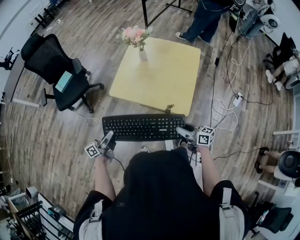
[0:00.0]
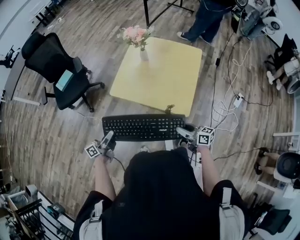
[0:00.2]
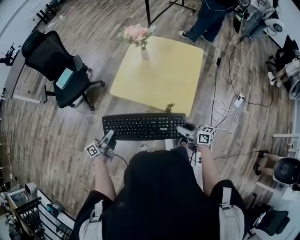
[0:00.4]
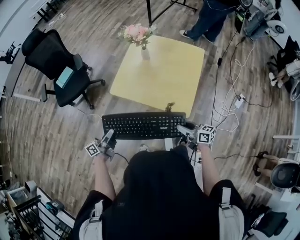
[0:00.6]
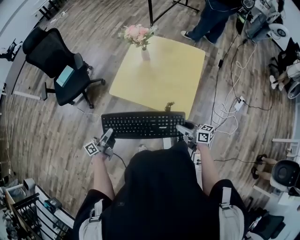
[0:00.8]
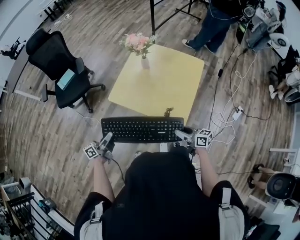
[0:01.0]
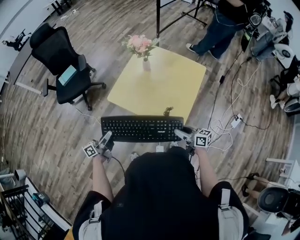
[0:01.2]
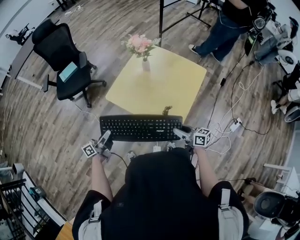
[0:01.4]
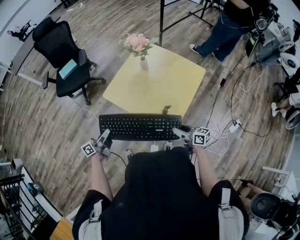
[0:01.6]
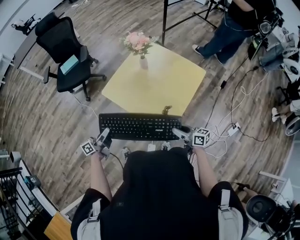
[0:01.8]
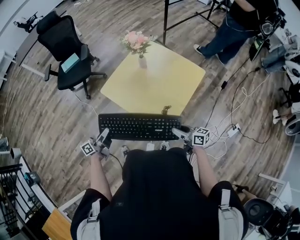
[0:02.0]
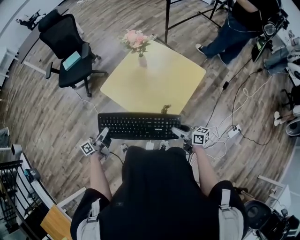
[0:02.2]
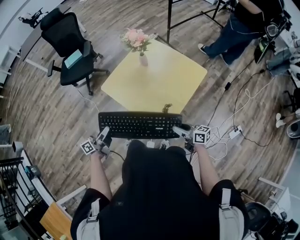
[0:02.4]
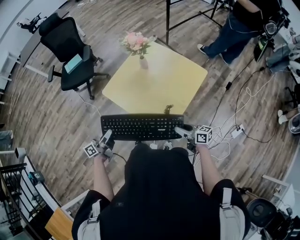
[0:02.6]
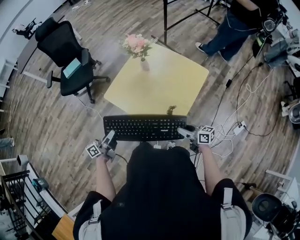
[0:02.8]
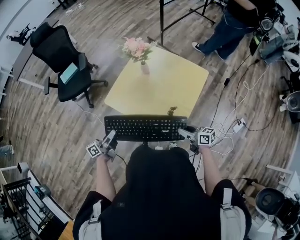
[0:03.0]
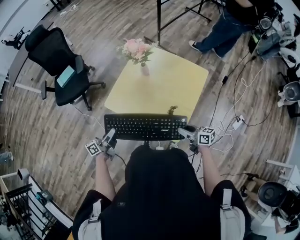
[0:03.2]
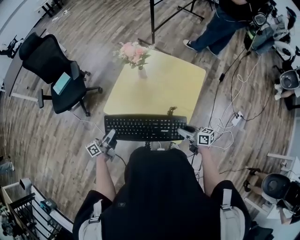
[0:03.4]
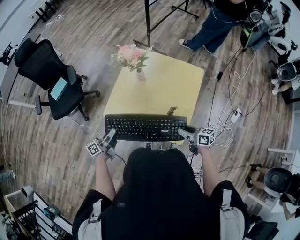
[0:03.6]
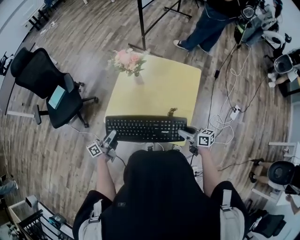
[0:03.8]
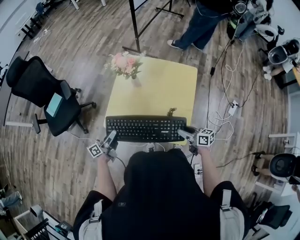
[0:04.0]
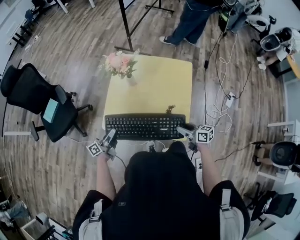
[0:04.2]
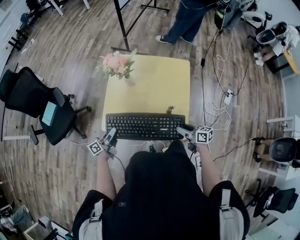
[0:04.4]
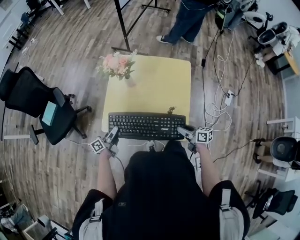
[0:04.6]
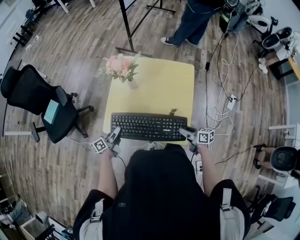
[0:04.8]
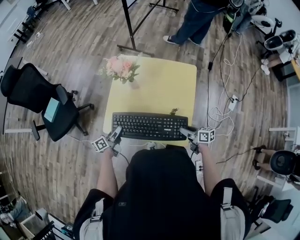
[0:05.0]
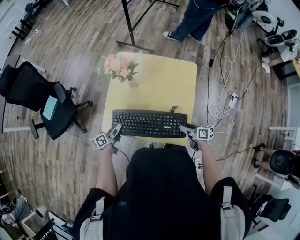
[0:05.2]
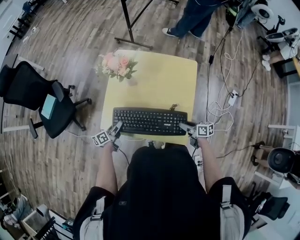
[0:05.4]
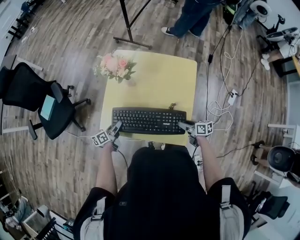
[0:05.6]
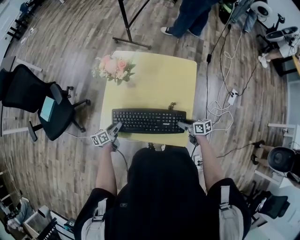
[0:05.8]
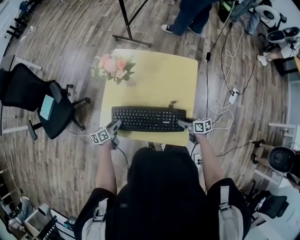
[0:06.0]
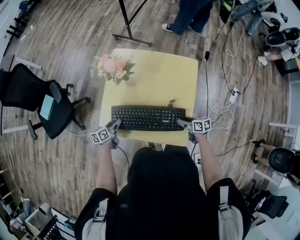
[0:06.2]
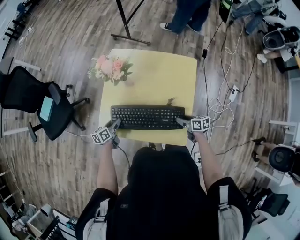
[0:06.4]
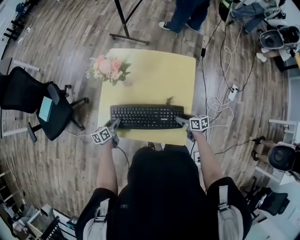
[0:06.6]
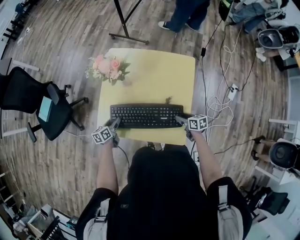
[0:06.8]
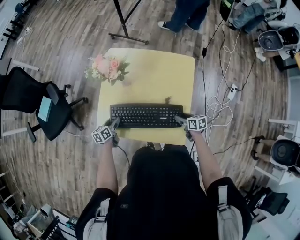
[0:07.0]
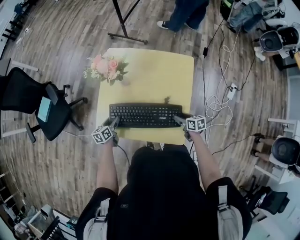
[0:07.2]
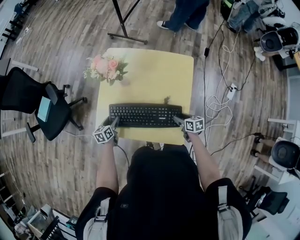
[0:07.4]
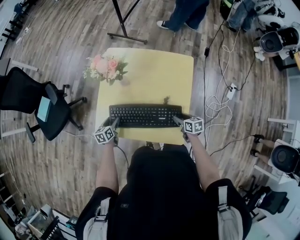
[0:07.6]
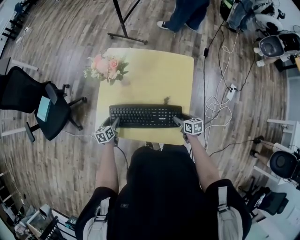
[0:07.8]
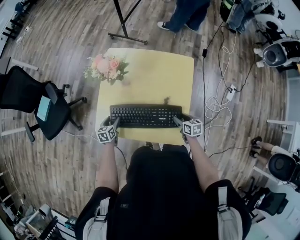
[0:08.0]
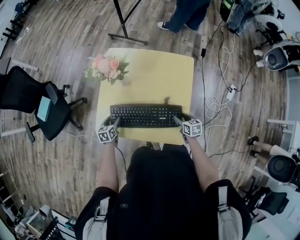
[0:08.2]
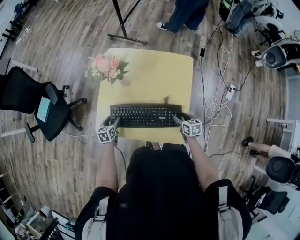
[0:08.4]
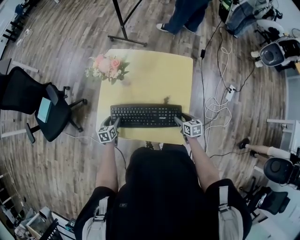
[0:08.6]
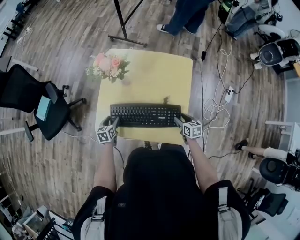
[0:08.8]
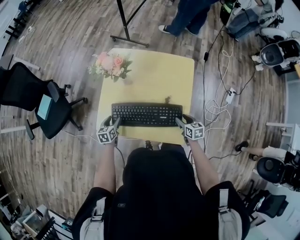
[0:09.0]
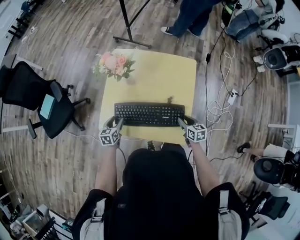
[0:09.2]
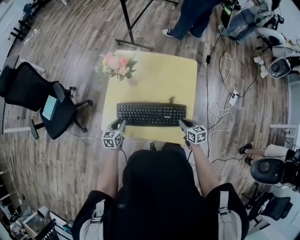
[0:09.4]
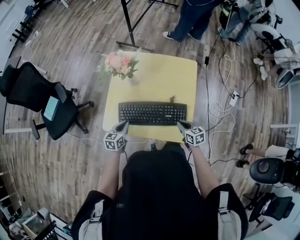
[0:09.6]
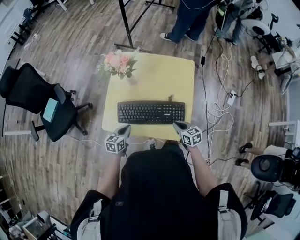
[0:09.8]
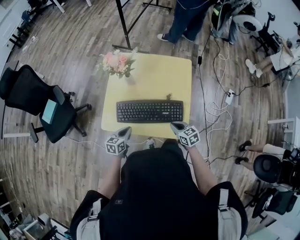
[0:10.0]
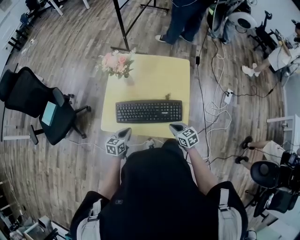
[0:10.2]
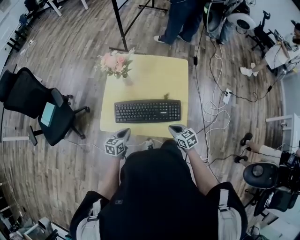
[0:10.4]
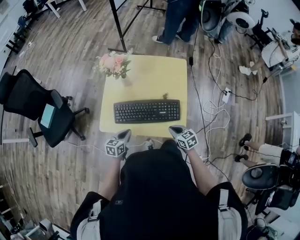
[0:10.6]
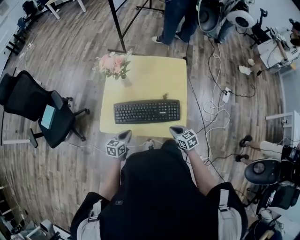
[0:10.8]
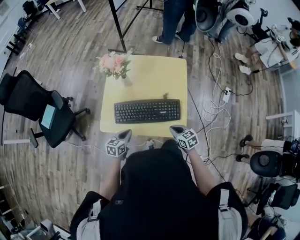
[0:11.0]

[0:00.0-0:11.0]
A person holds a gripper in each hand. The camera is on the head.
0:00.0 to 0:01.6: The left gripper heads to the right, covering approximately 10 cm; the right gripper shifts about 15 cm to the right and forward.
0:01.6 to 0:03.2: The grippers both shift forward by some 10 cm.
0:03.2 to 0:04.8: The left gripper moves forward and downward, approximately 15 cm. Meanwhile the right gripper ends up approximately 5 cm from where it was, and changes its angle by roughly 20 degrees.
0:04.8 to 0:06.2: Both grippers travel together downward and forward, some 10 cm. The left gripper rotates roughly 20 degrees, and opens.
0:06.2 to 0:07.8: The left gripper swivels roughly 20 degrees.
0:07.8 to 0:09.4: Both grippers move upward, approximately 5 cm. The left gripper closes; the right gripper closes up.
0:09.4 to 0:11.0: The left gripper heads backward and to the right, covering approximately 10 cm, and closes up; the right gripper moves backward and to the left, approximately 10 cm.

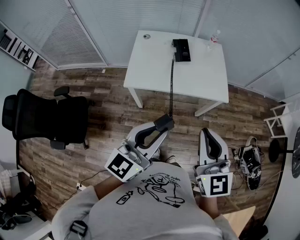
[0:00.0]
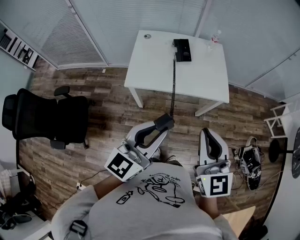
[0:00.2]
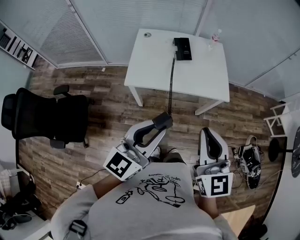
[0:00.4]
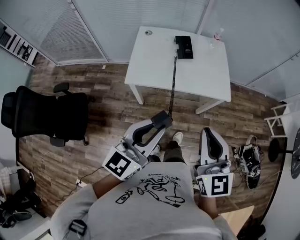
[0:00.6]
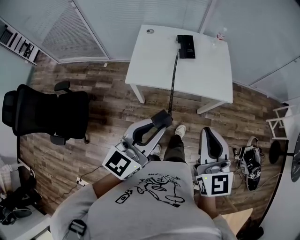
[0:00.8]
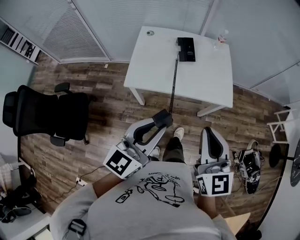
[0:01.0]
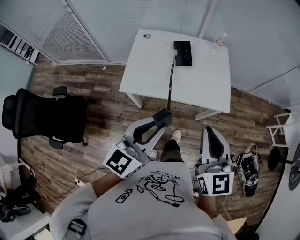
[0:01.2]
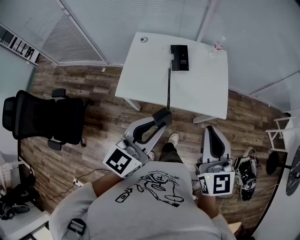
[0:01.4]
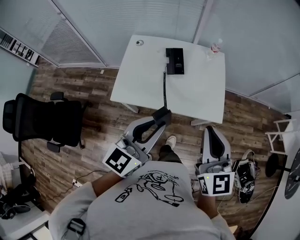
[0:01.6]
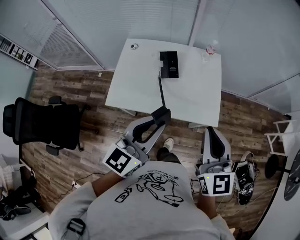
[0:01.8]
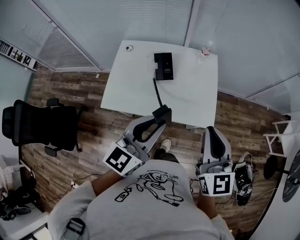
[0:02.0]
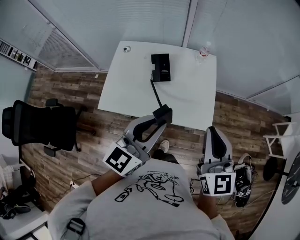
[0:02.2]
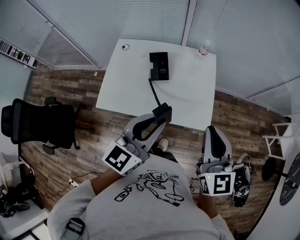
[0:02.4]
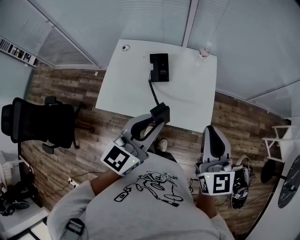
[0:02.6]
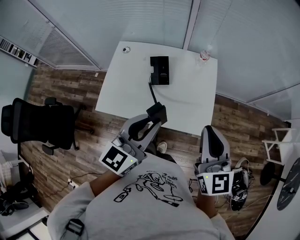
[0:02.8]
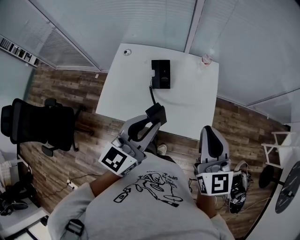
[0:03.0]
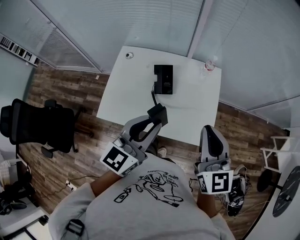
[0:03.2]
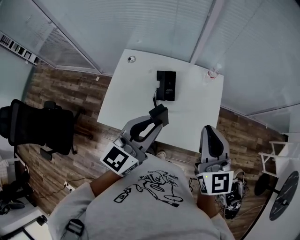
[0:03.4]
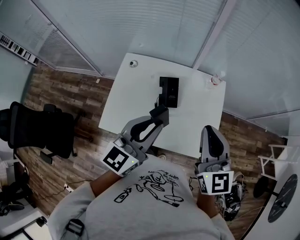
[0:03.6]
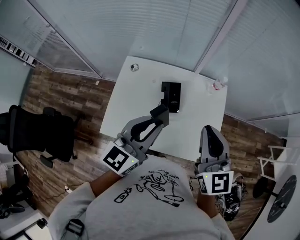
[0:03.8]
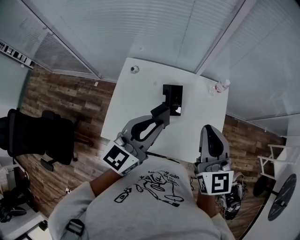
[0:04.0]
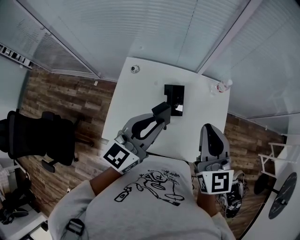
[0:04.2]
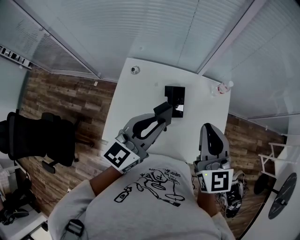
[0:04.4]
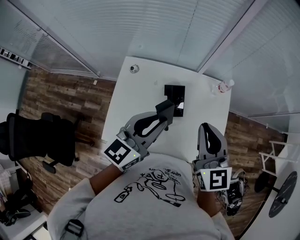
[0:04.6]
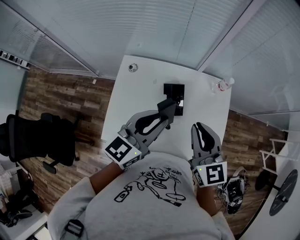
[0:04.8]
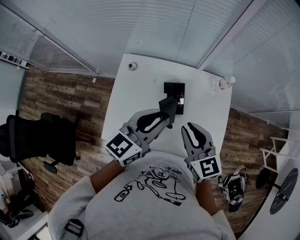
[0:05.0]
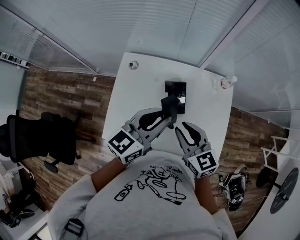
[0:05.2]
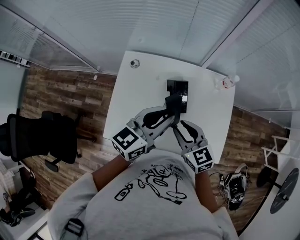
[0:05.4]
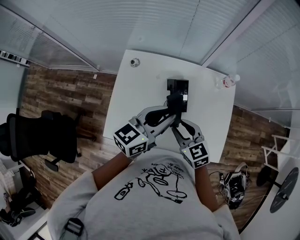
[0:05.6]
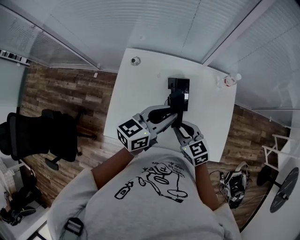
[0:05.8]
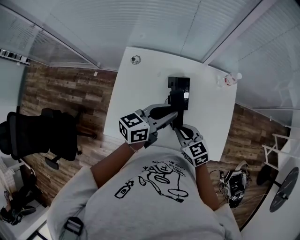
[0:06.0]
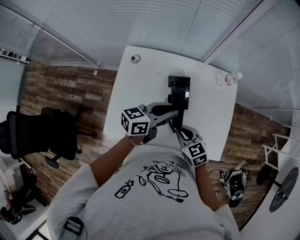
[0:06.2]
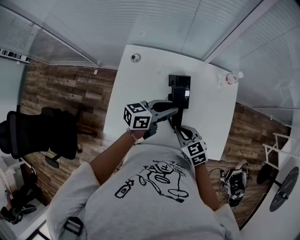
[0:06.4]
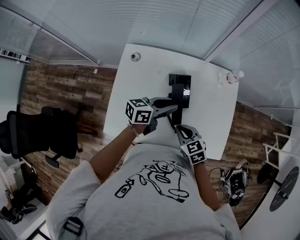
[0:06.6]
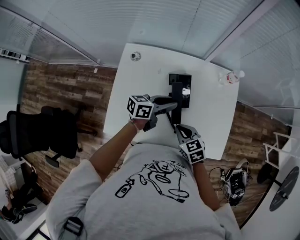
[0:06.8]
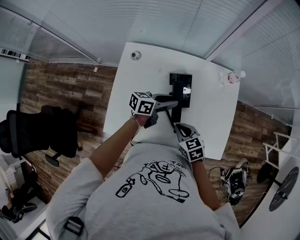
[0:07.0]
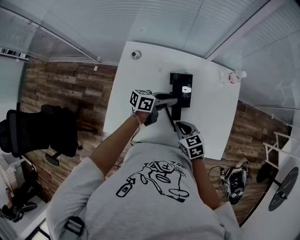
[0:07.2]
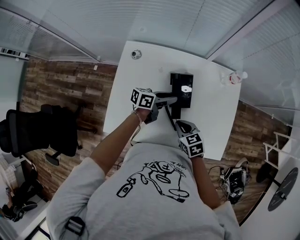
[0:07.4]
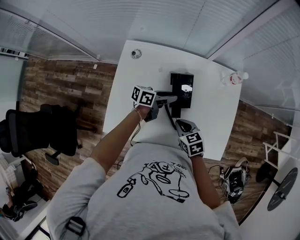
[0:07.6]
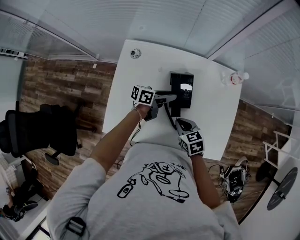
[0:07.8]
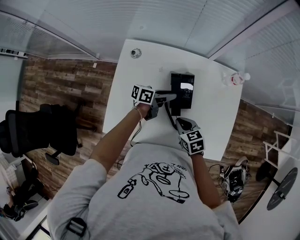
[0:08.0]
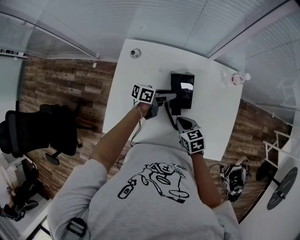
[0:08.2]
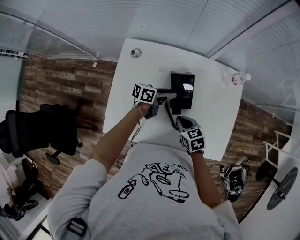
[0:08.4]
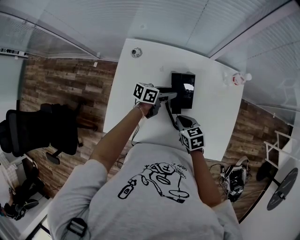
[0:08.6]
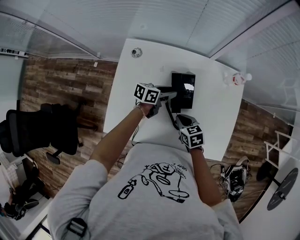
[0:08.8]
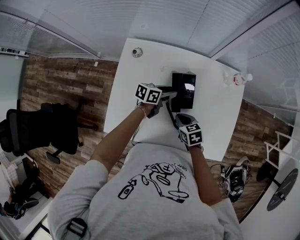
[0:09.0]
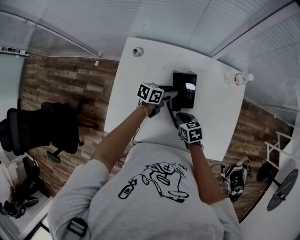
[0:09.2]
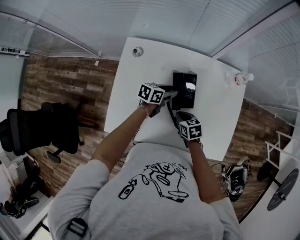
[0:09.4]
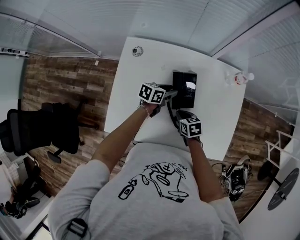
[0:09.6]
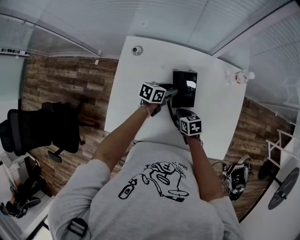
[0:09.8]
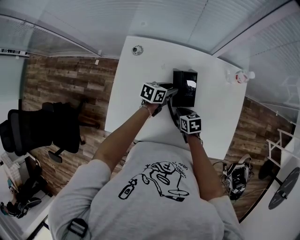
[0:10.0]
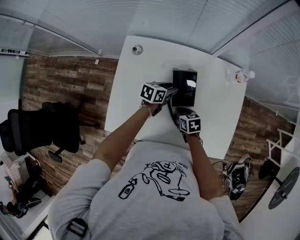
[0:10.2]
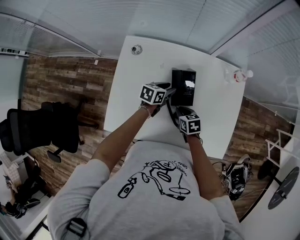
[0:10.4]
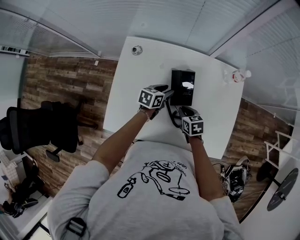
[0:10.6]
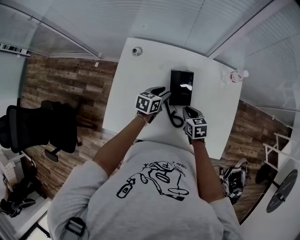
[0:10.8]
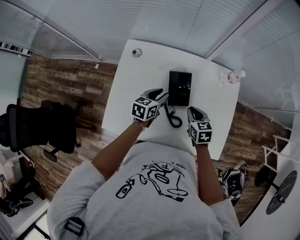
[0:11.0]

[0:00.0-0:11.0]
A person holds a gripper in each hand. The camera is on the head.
0:00.0 to 0:01.6: The left gripper is displaced forward by roughly 20 cm; the right gripper travels forward and to the right by about 20 cm.
0:01.6 to 0:03.2: Both grippers travel together forward, roughly 15 cm.
0:03.2 to 0:04.8: The right gripper is displaced to the left, forward and downward by about 20 cm. The left gripper shifts approximately 20 cm forward and to the left.
0:04.8 to 0:06.2: The right gripper travels downward by some 20 cm, rotates some 30 degrees, and opens, then closes once more, while the left gripper travels downward by approximately 15 cm, and swivels approximately 30 degrees.
0:06.2 to 0:07.8: The right gripper is displaced downward by roughly 5 cm; the left gripper heads downward, covering approximately 15 cm, and rotates some 20 degrees.
0:07.8 to 0:09.4: The left gripper rotates approximately 20 degrees. The right gripper is displaced downward by roughly 5 cm.
0:09.4 to 0:11.0: The left gripper goes approximately 5 cm upward, and swivels some 20 degrees; the right gripper travels upward and to the right by approximately 10 cm.

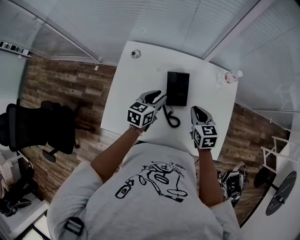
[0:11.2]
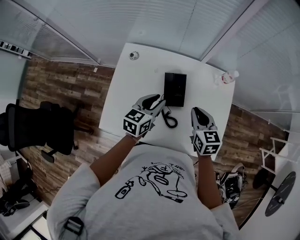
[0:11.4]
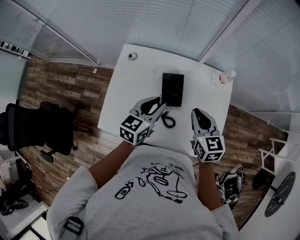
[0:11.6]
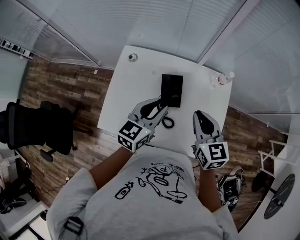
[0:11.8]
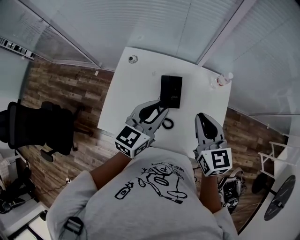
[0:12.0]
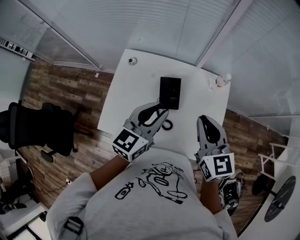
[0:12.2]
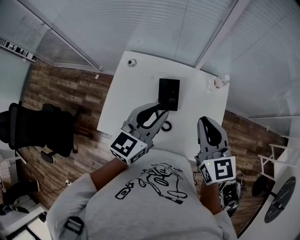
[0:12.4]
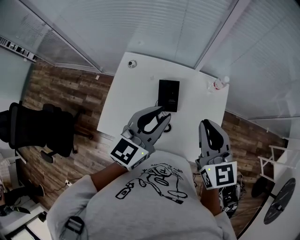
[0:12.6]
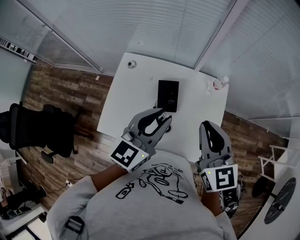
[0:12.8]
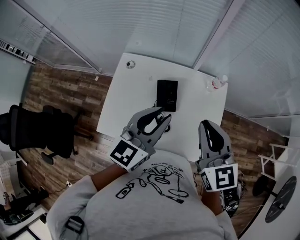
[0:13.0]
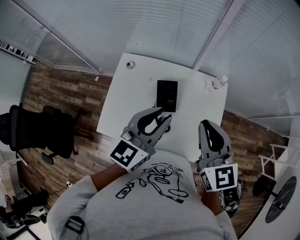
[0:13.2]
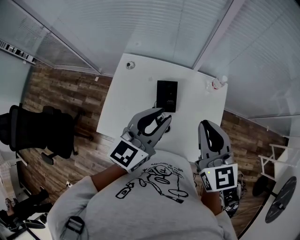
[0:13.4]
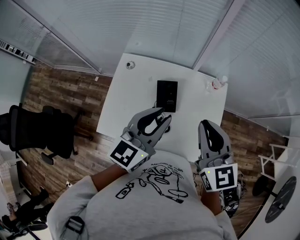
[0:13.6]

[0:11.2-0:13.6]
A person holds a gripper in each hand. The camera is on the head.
0:11.2 to 0:12.4: Both grippers travel together upward, some 25 cm. The right gripper changes its angle by some 30 degrees. The left gripper swivels approximately 20 degrees.
0:12.4 to 0:13.6: There are only small adjustments of the grippers.
